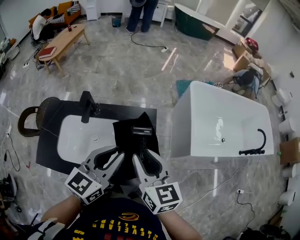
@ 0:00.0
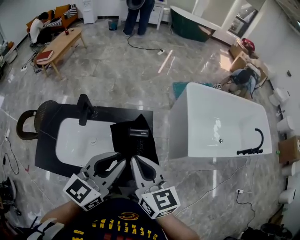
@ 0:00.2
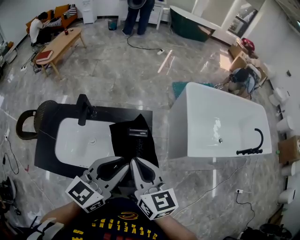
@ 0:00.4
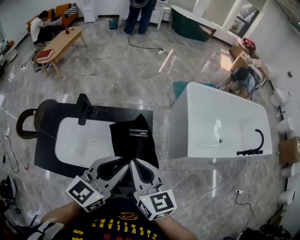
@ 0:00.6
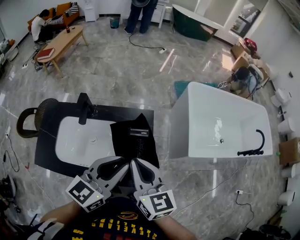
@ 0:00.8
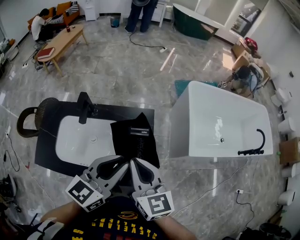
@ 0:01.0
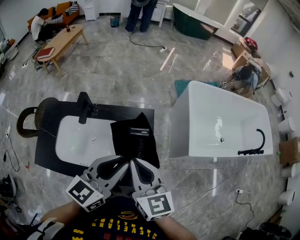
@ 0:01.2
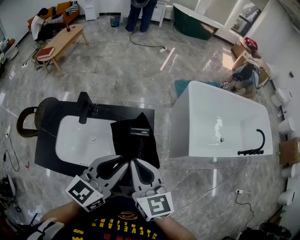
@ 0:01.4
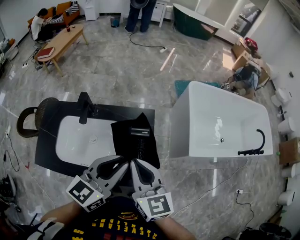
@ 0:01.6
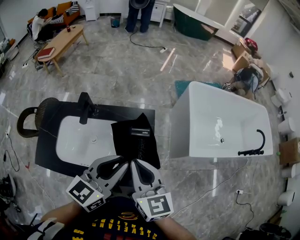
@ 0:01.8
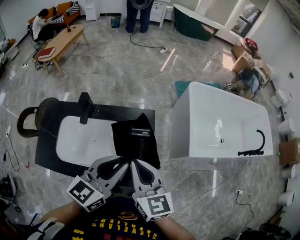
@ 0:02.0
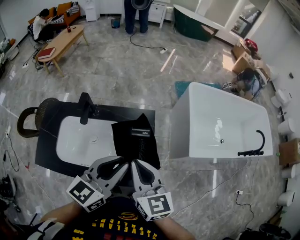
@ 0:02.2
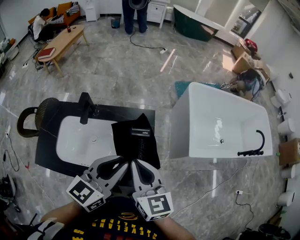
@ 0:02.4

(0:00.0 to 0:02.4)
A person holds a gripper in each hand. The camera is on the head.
0:00.0 - 0:01.2: The right gripper closes its fingers.
0:01.2 - 0:02.4: Neither gripper changes place.

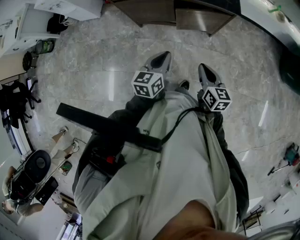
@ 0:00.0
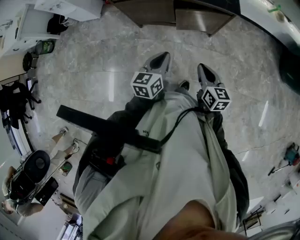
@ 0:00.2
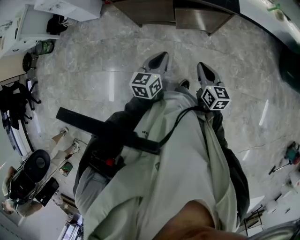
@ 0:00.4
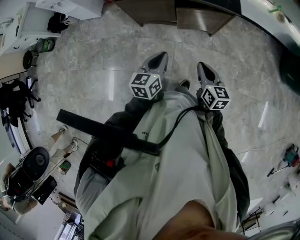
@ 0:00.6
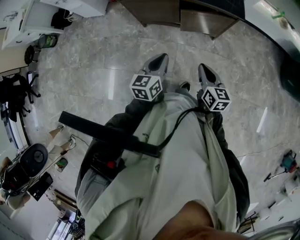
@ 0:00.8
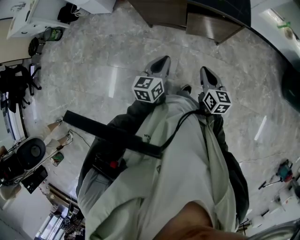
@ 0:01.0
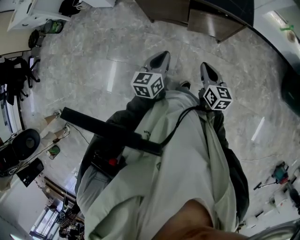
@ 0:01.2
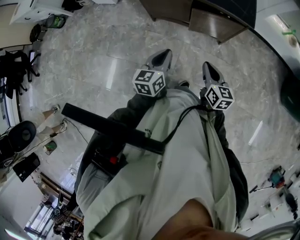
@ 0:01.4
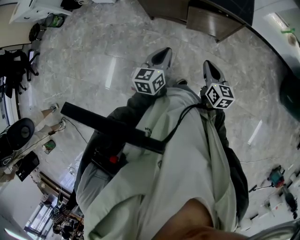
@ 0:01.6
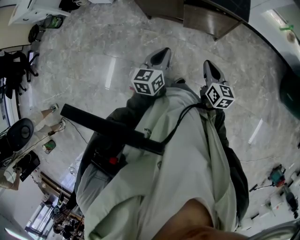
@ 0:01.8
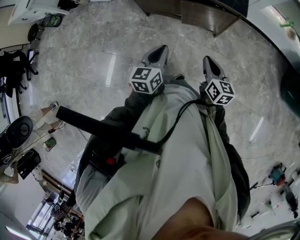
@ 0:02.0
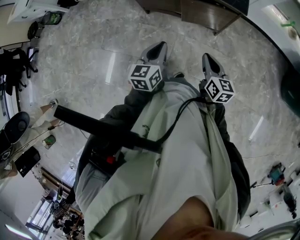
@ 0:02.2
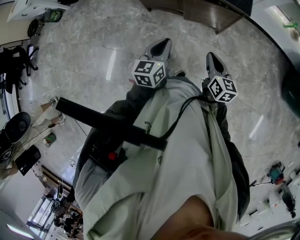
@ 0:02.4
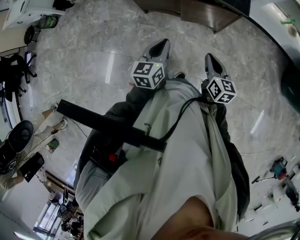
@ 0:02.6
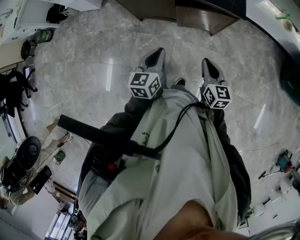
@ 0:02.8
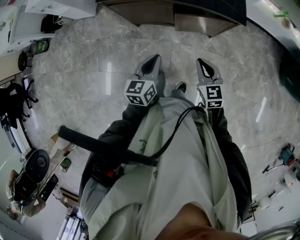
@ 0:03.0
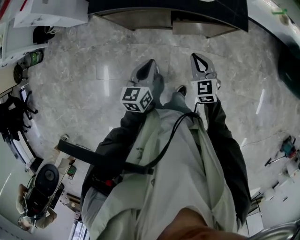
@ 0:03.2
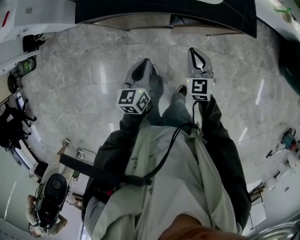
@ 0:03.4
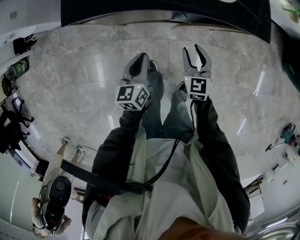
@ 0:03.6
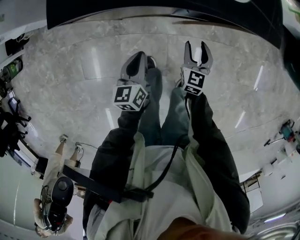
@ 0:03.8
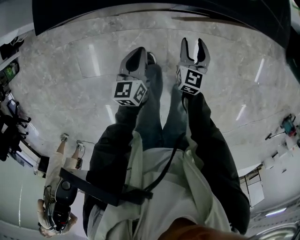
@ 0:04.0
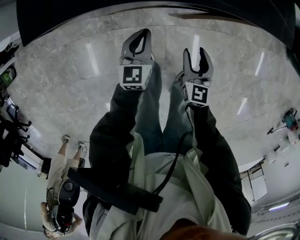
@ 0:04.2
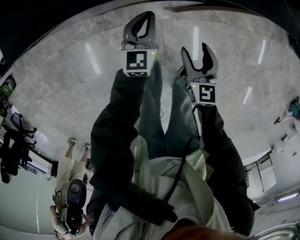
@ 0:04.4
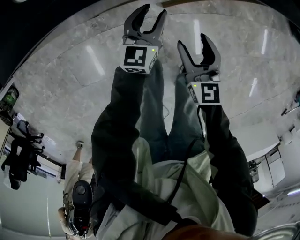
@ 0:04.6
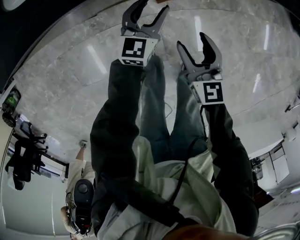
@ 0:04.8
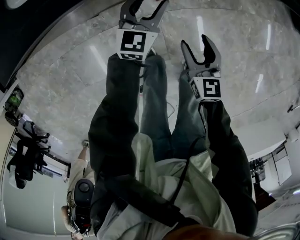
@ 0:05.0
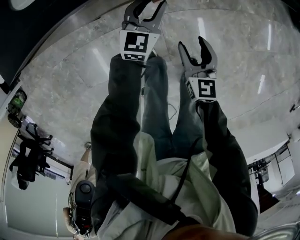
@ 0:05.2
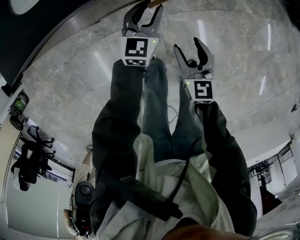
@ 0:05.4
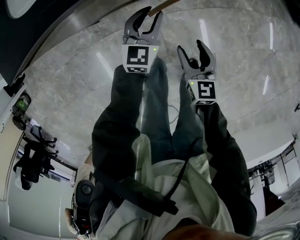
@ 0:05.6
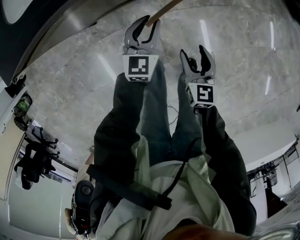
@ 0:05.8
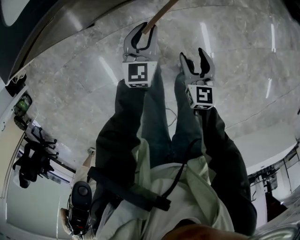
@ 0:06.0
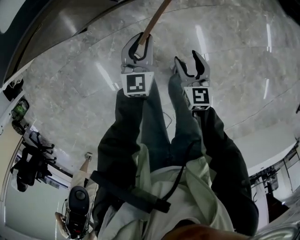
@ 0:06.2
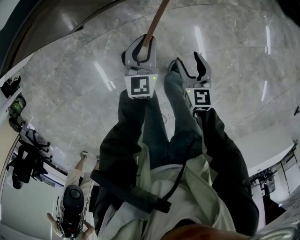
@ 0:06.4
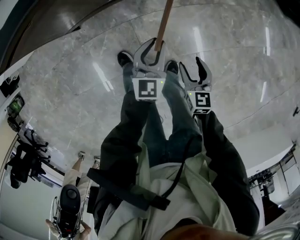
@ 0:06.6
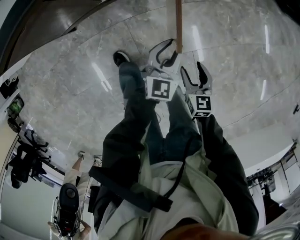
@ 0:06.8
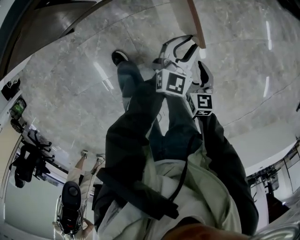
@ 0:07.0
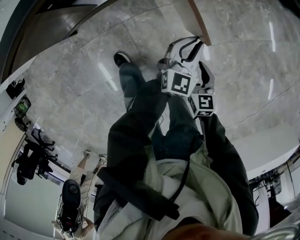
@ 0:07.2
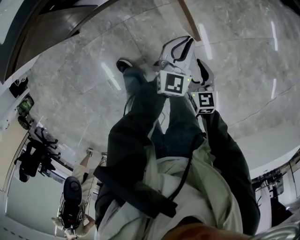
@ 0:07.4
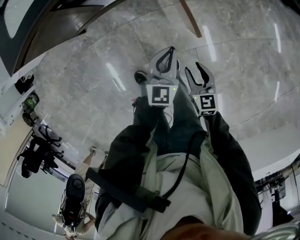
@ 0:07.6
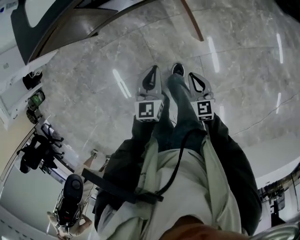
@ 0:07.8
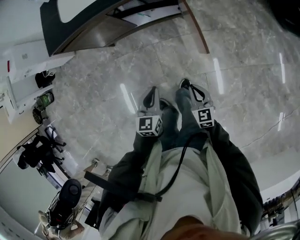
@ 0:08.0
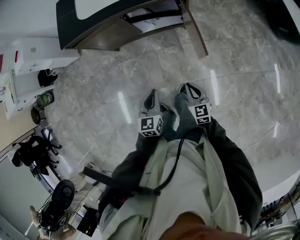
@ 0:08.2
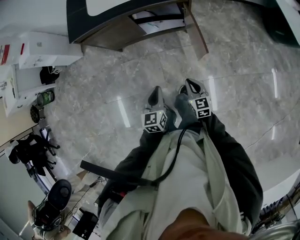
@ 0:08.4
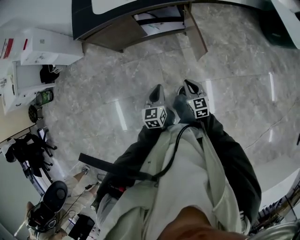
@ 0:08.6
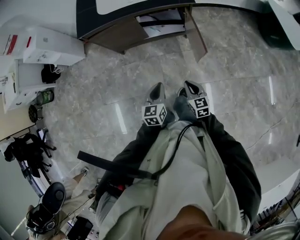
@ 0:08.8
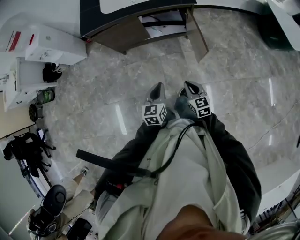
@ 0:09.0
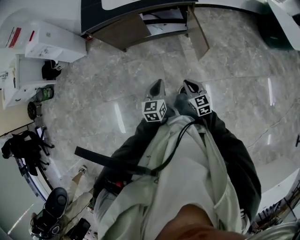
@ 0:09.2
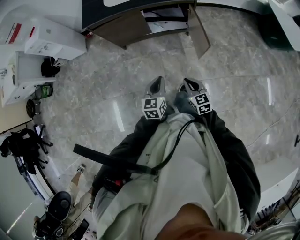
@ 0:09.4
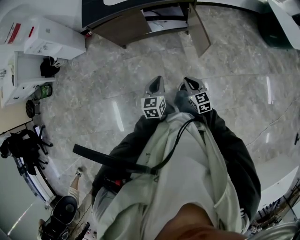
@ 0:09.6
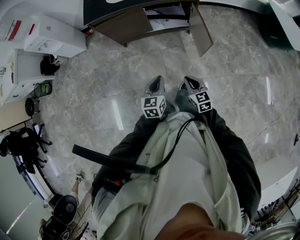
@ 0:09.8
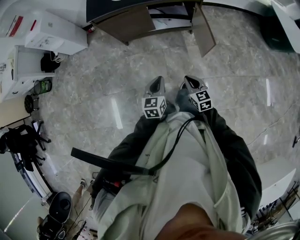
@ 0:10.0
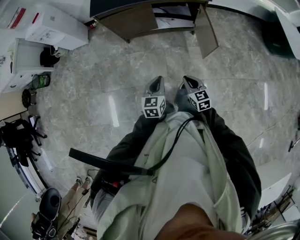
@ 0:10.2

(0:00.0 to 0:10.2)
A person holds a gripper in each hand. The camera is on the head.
0:00.0 - 0:01.4: There are only small adjustments of the grippers.
0:01.4 - 0:03.0: The grippers both shift forward by about 10 cm. The right gripper rotates some 30 degrees.
0:03.0 - 0:04.4: The two grippers go approximately 35 cm downward and forward. The left gripper rotates some 20 degrees. Meanwhile the right gripper changes its angle by some 30 degrees, and opens.
0:04.4 - 0:05.8: The left gripper is displaced to the right by approximately 10 cm, and opens, while the right gripper goes roughly 10 cm to the right and backward.
0:05.8 - 0:07.2: The right gripper travels to the right and backward by approximately 25 cm; the left gripper heads to the right, covering approximately 35 cm.
0:07.2 - 0:08.8: The left gripper shifts by some 40 cm, and turns by roughly 40 degrees; the right gripper goes about 20 cm upward, rotates some 20 degrees, and closes up.
0:08.8 - 0:10.2: Both grippers travel together to the left, roughly 10 cm.

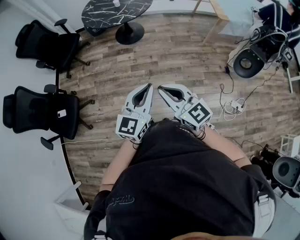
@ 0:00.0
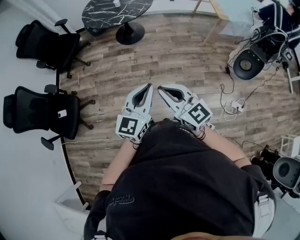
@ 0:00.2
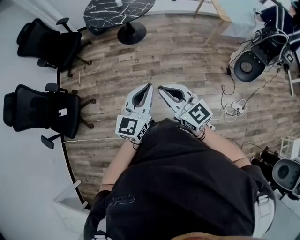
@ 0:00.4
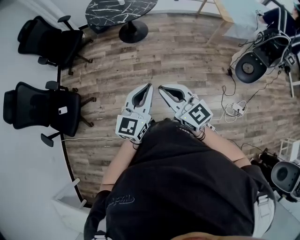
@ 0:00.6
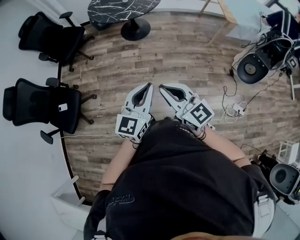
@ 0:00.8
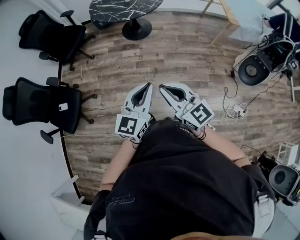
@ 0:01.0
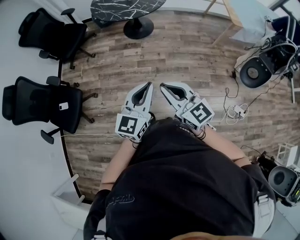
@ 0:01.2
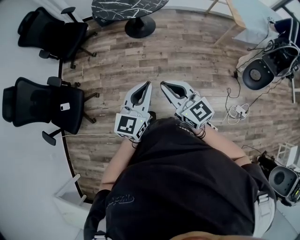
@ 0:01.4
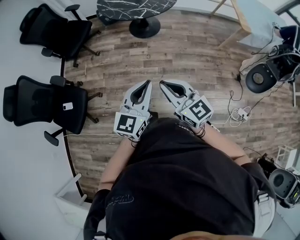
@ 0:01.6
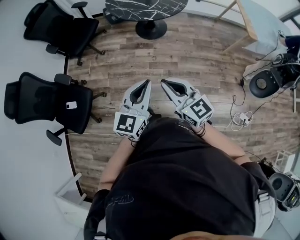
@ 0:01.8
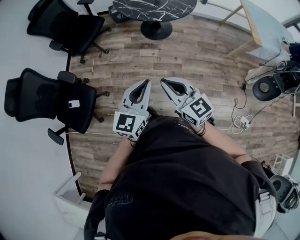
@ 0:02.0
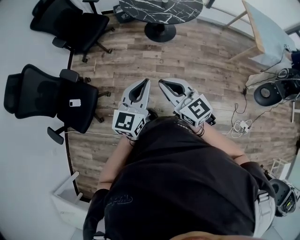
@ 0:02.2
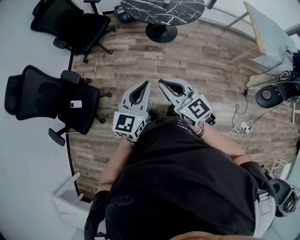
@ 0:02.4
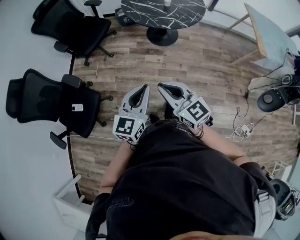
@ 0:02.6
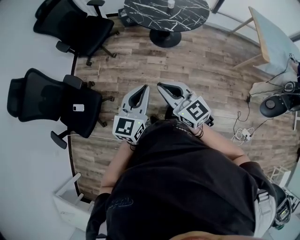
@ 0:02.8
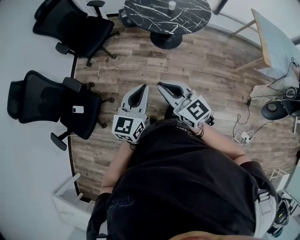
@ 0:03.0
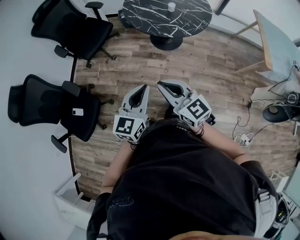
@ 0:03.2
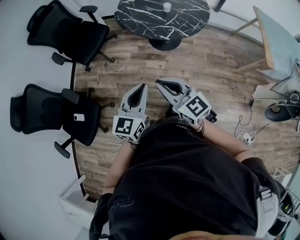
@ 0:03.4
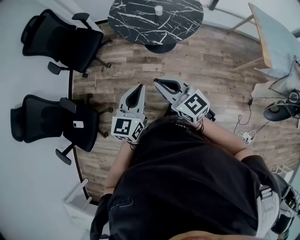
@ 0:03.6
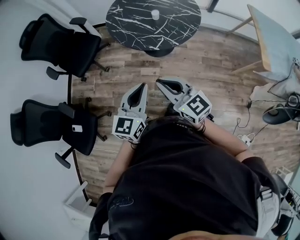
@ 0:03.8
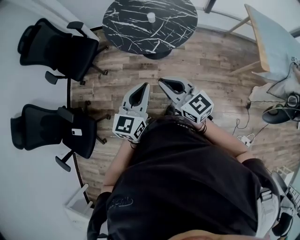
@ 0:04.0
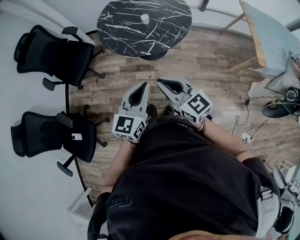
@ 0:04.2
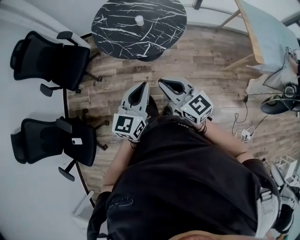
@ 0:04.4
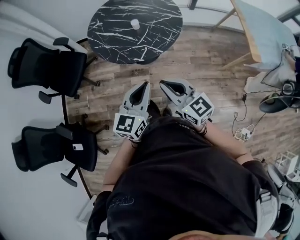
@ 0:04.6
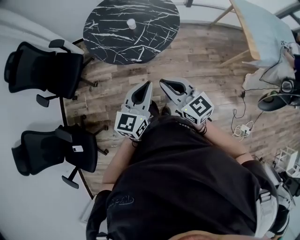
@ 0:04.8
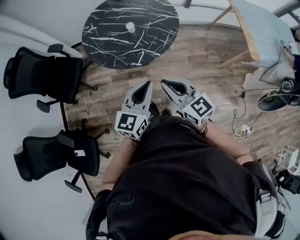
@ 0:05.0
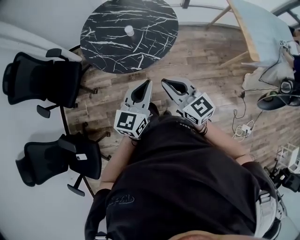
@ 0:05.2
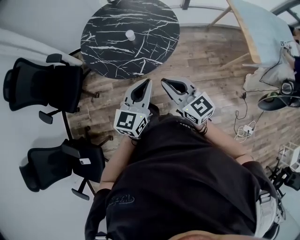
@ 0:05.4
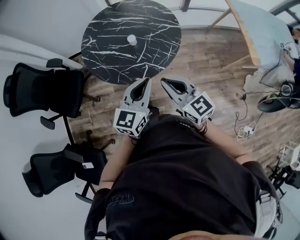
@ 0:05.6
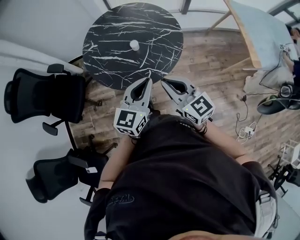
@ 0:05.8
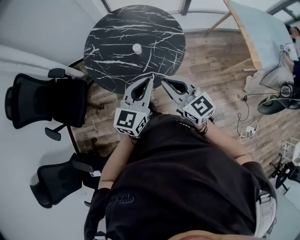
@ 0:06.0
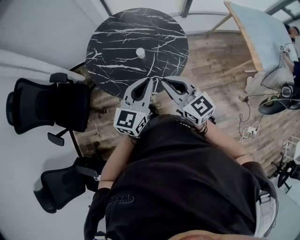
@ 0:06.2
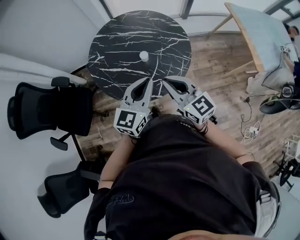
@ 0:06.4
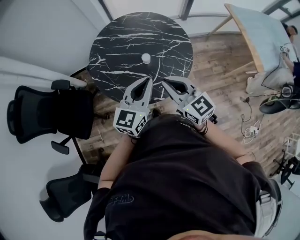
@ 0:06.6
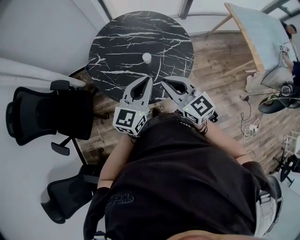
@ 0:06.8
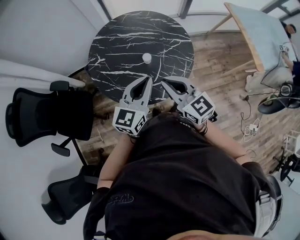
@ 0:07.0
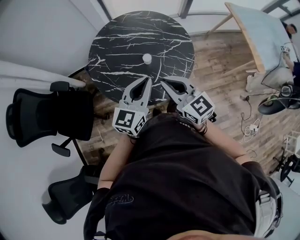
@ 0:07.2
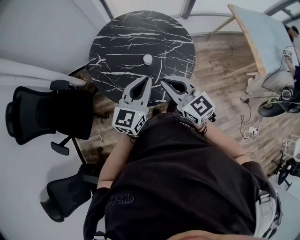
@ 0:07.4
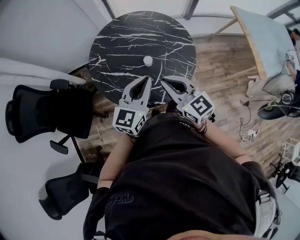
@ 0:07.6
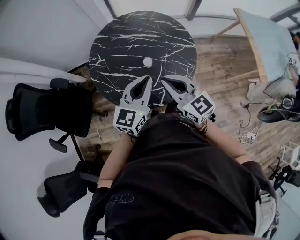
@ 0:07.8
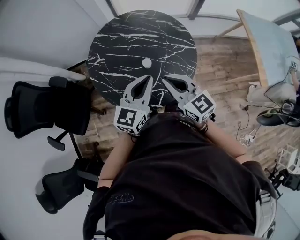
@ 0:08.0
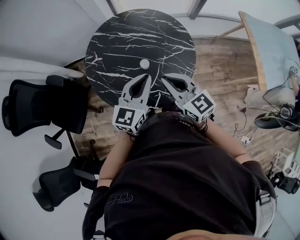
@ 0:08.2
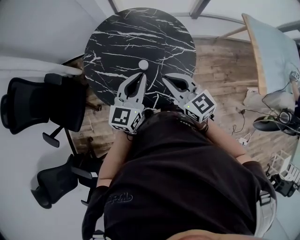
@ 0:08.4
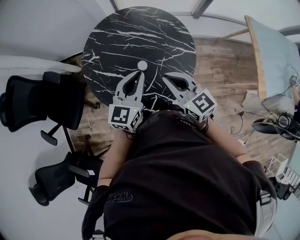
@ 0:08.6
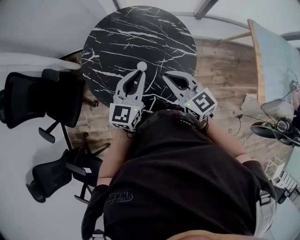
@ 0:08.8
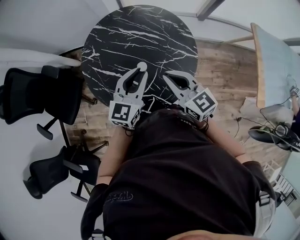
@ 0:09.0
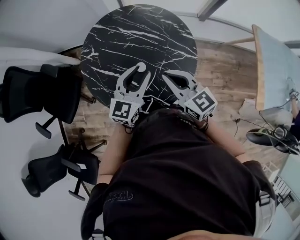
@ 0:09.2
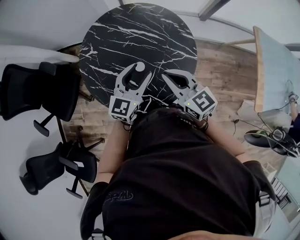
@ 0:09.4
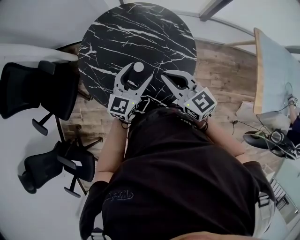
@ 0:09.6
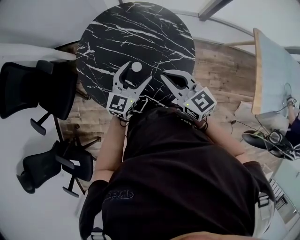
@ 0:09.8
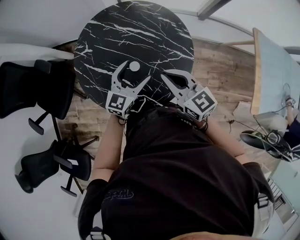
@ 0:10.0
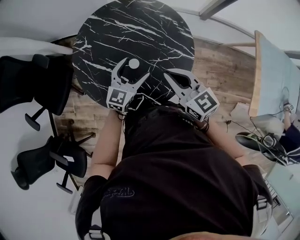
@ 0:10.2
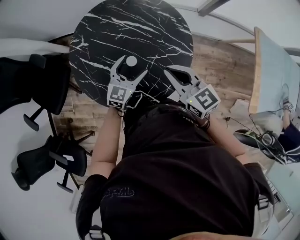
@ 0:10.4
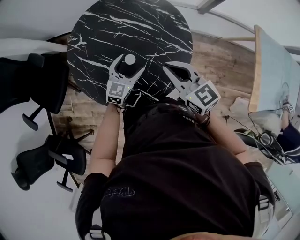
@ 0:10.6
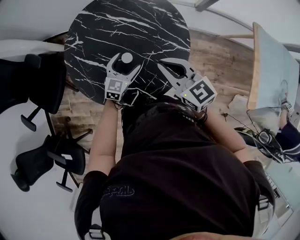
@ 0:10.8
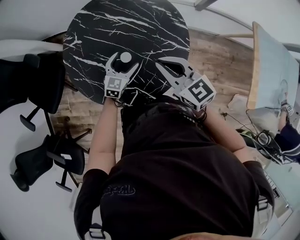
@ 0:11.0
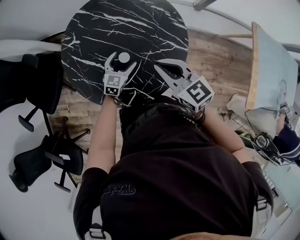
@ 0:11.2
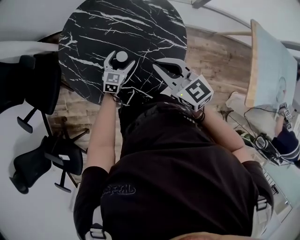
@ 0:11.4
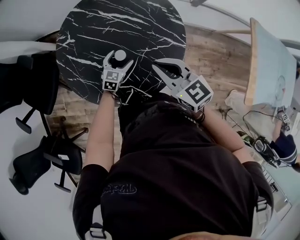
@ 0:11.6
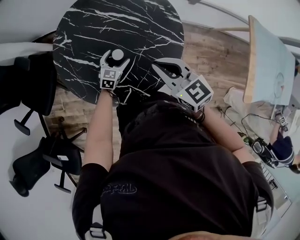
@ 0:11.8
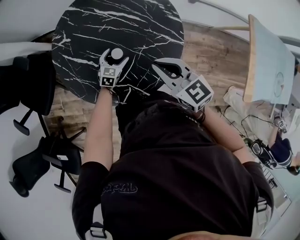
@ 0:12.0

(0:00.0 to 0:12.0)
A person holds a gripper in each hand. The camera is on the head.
0:00.0 - 0:01.6: The right gripper travels forward and to the left by approximately 15 cm. Meanwhile the left gripper heads to the left and forward, covering approximately 15 cm.
0:01.6 - 0:03.0: The grippers both shift forward and to the left by roughly 20 cm.
0:03.0 - 0:04.4: The two grippers go roughly 30 cm to the right and forward.
0:04.4 - 0:06.0: The two grippers go roughly 25 cm forward.
0:06.0 - 0:07.6: The two grippers go roughly 15 cm forward and to the left.
0:07.6 - 0:09.0: The left gripper is displaced forward, downward and to the right by roughly 15 cm; the right gripper heads forward and to the right, covering roughly 15 cm.
0:09.0 - 0:10.4: The right gripper changes place by roughly 5 cm, while the left gripper is displaced downward by about 15 cm, and opens.
0:10.4 - 0:12.0: The left gripper travels downward by some 20 cm.
